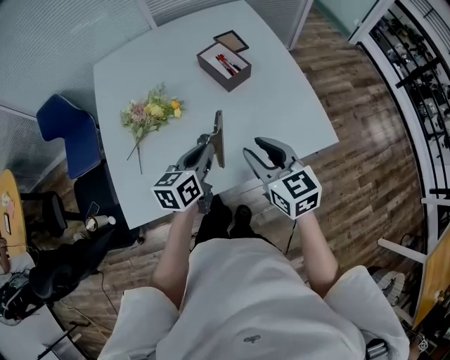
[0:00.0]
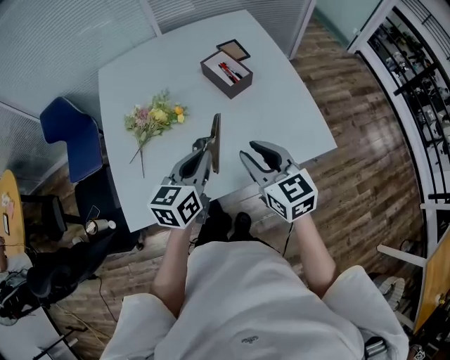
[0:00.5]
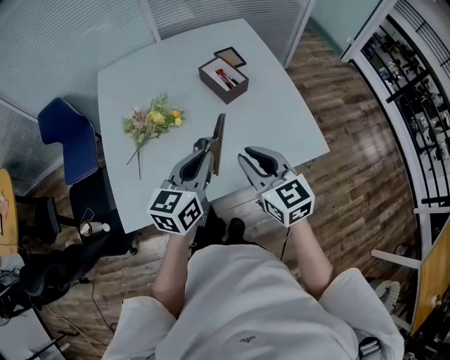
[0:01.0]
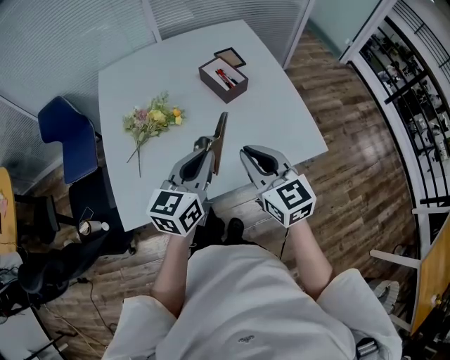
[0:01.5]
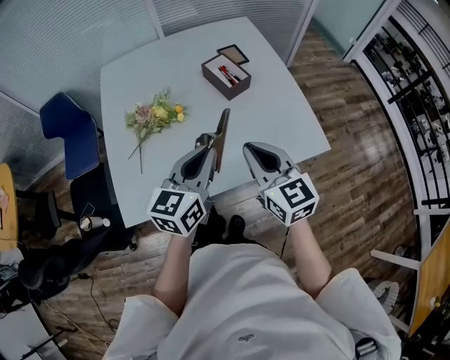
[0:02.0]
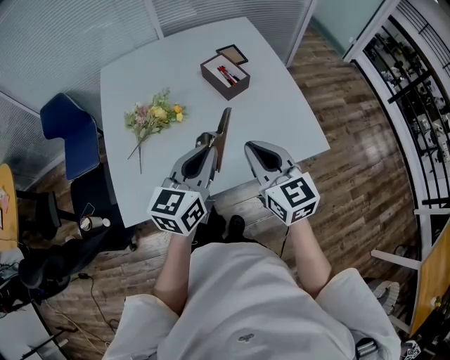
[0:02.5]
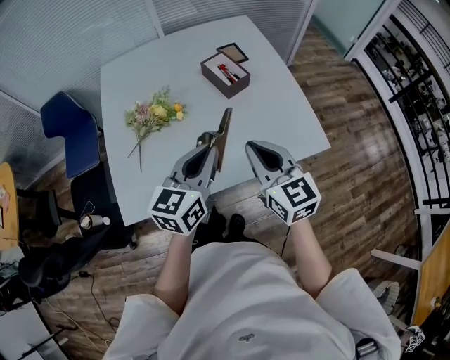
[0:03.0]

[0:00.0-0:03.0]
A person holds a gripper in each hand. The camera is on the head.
0.0 to 1.5 s: The right gripper shifts about 5 cm upward, and closes its fingers, while the left gripper moves upward and backward, approximately 10 cm.
1.5 to 3.0 s: The grippers make only small movements.

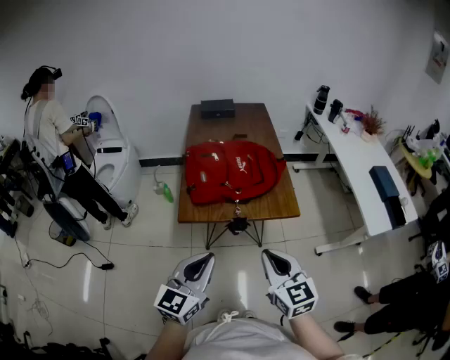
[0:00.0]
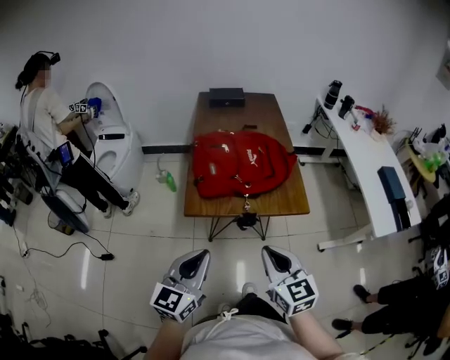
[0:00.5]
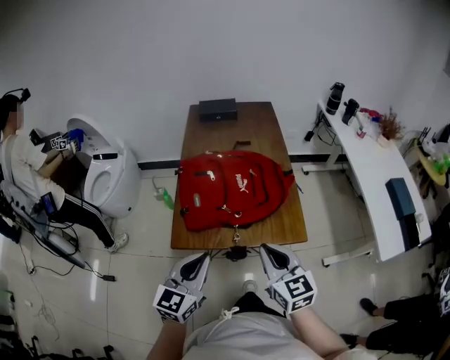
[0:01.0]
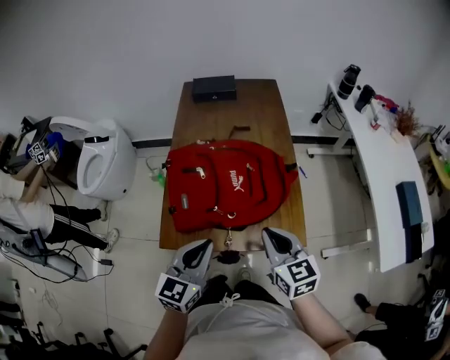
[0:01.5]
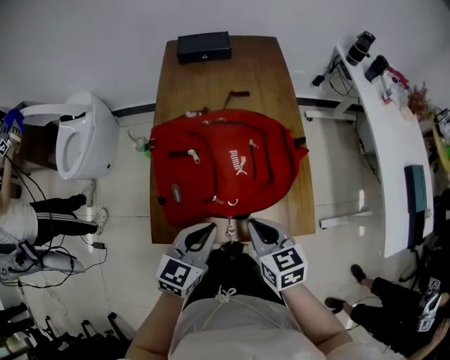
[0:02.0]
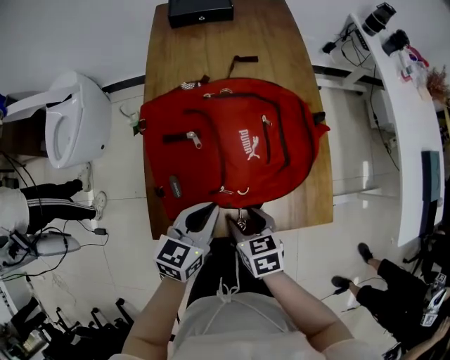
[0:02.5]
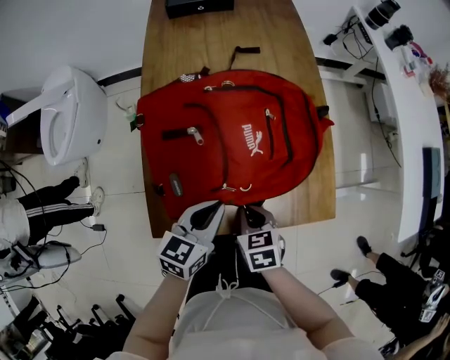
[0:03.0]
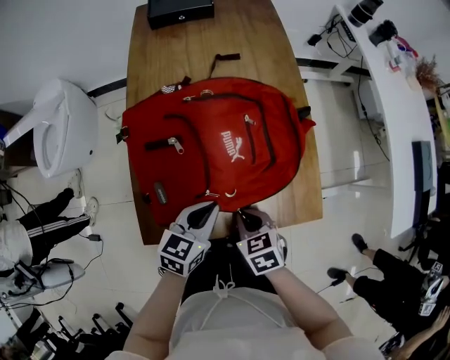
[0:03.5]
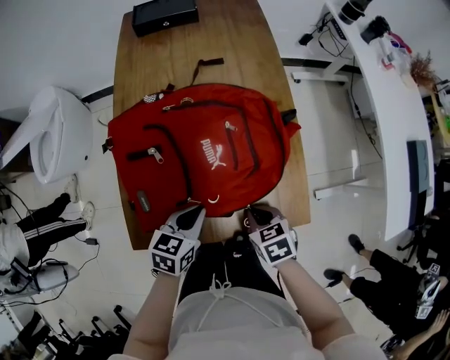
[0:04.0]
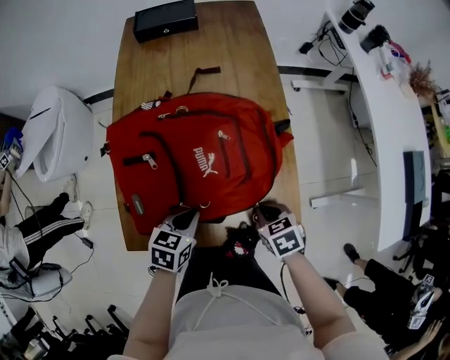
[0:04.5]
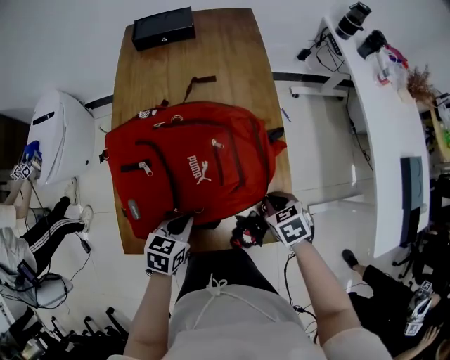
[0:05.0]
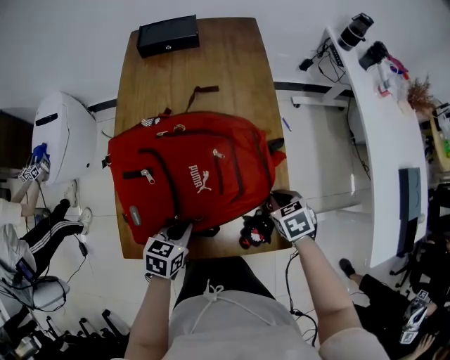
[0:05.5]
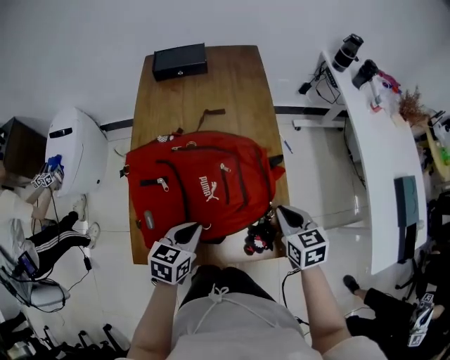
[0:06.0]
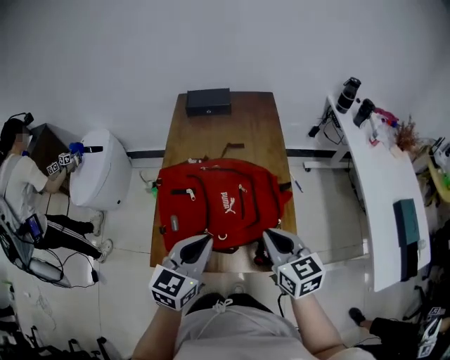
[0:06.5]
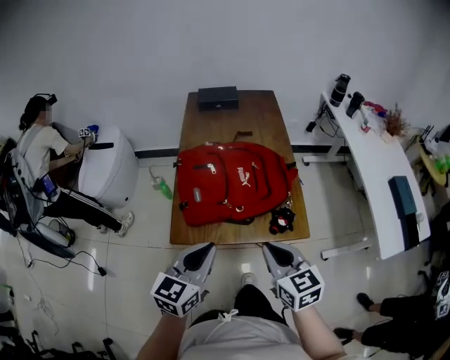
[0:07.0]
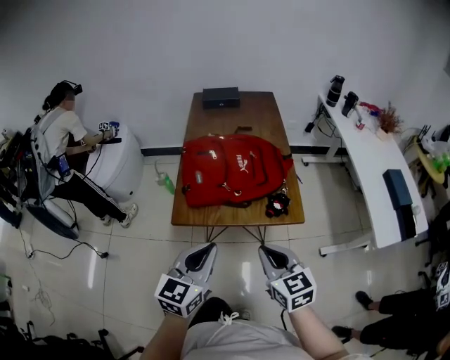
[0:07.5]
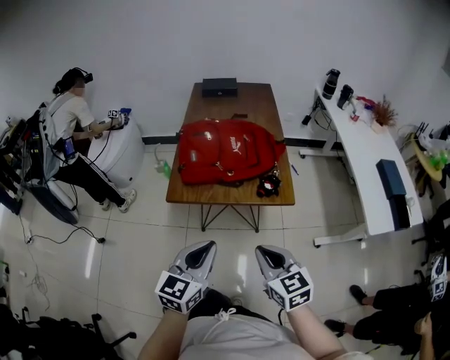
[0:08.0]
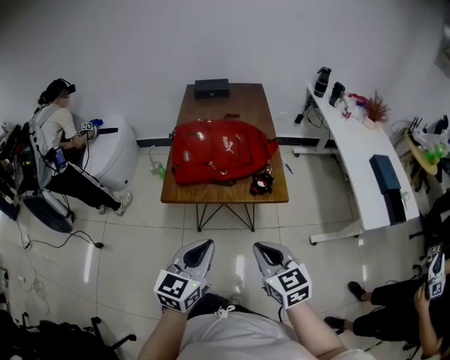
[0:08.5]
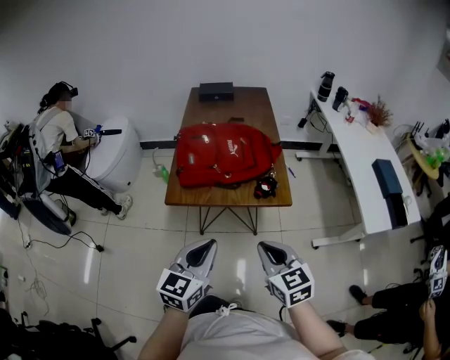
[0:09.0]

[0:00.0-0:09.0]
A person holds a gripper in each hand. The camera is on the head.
0.0 to 2.0 s: Both grippers travel together forward and downward, approximately 35 cm. The left gripper swivels roughly 20 degrees. The right gripper swivels roughly 20 degrees.
2.0 to 4.5 s: The right gripper moves downward and to the right, some 20 cm, swivels approximately 30 degrees, and opens and closes again, while the left gripper is displaced downward and forward by about 15 cm, and turns by about 30 degrees.
4.5 to 7.0 s: The two grippers go about 30 cm upward and backward. The right gripper angles its fingers upward, by about 40 degrees, while the left gripper points its fingers about 30 degrees further upward.
7.0 to 9.0 s: Both grippers move backward, about 20 cm.

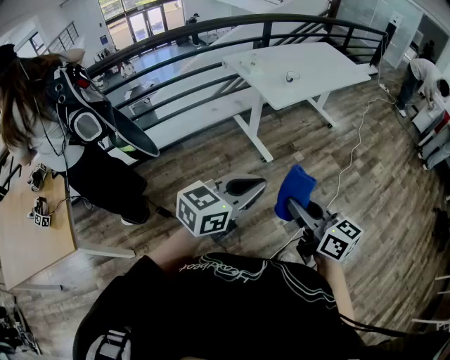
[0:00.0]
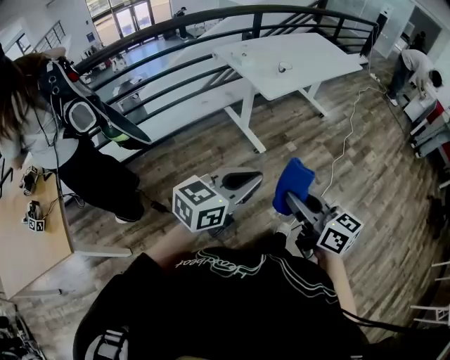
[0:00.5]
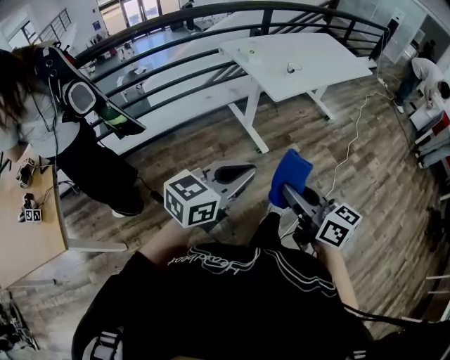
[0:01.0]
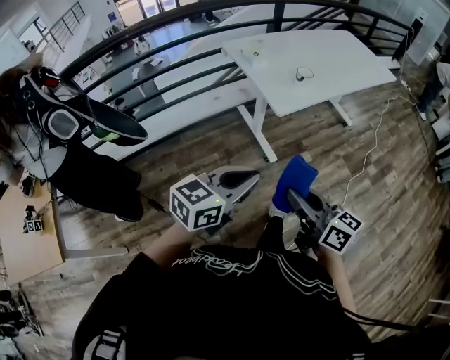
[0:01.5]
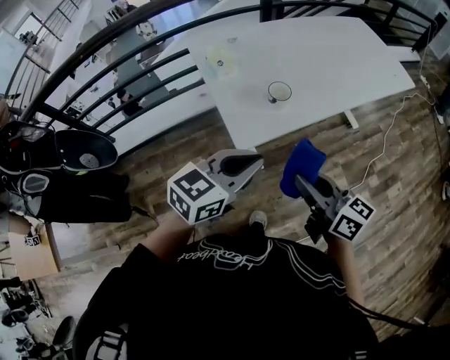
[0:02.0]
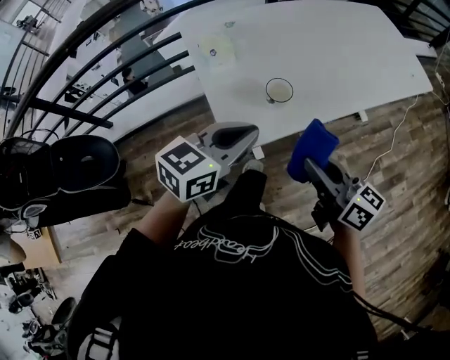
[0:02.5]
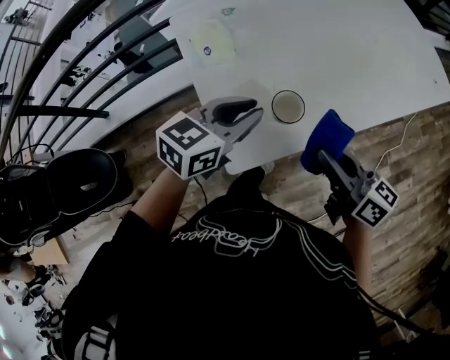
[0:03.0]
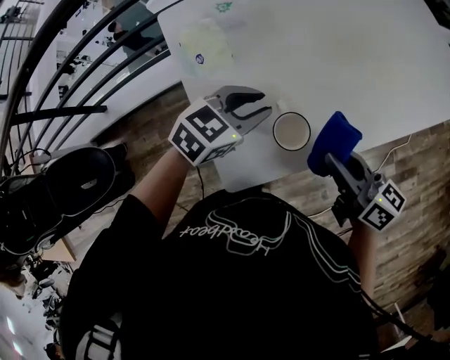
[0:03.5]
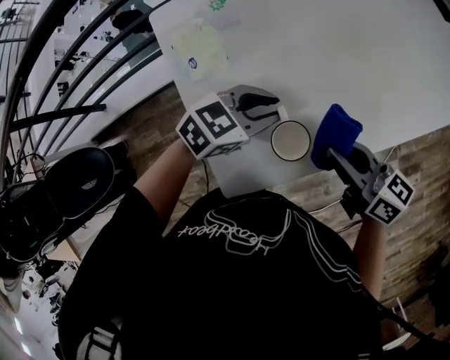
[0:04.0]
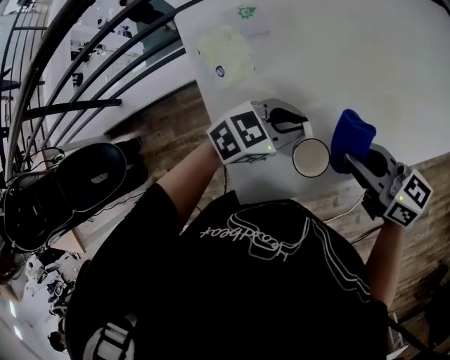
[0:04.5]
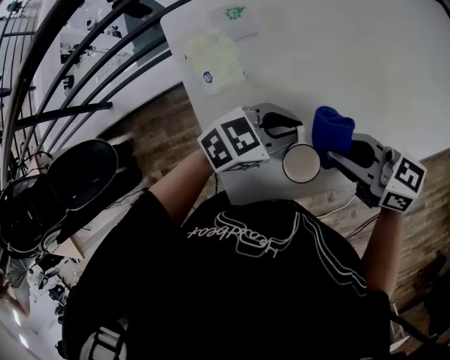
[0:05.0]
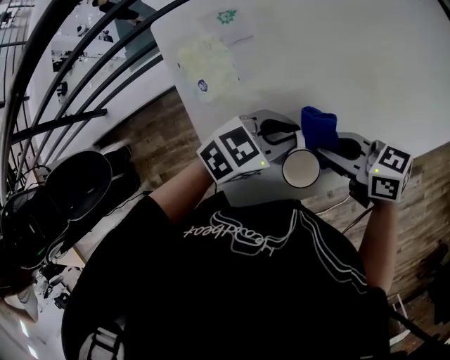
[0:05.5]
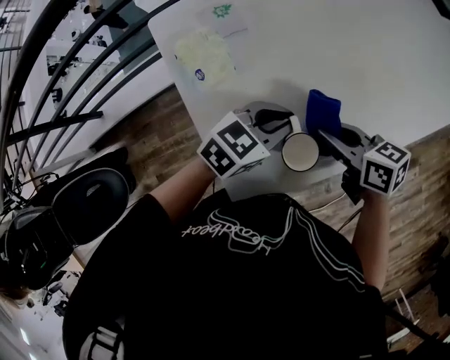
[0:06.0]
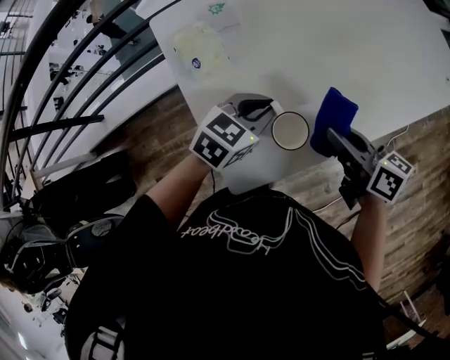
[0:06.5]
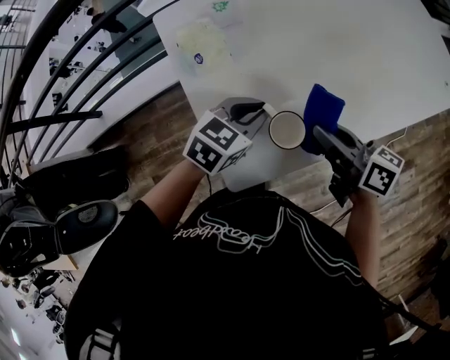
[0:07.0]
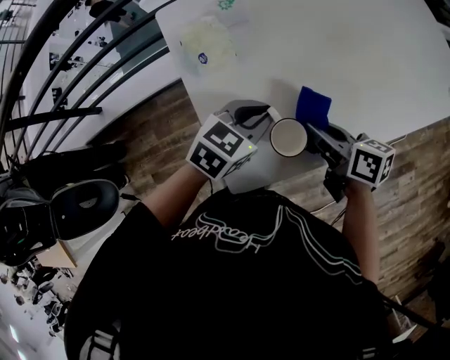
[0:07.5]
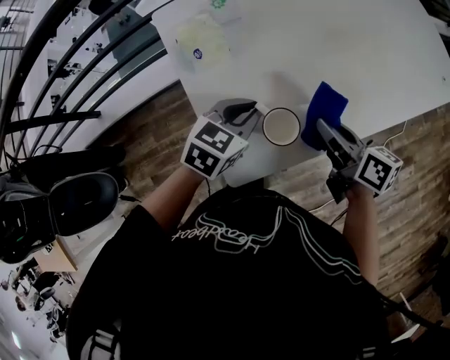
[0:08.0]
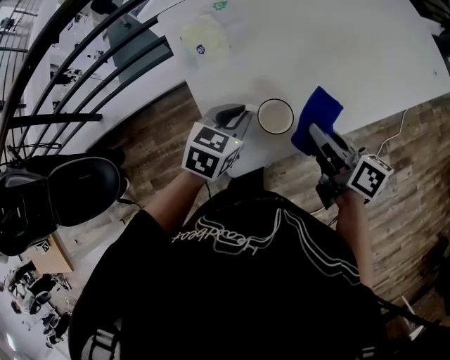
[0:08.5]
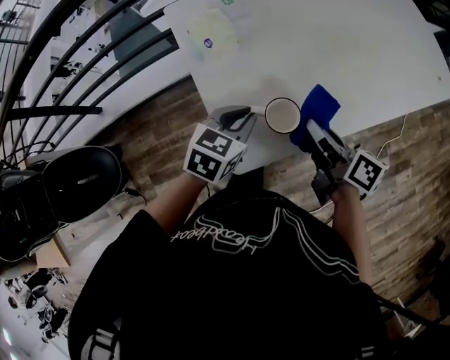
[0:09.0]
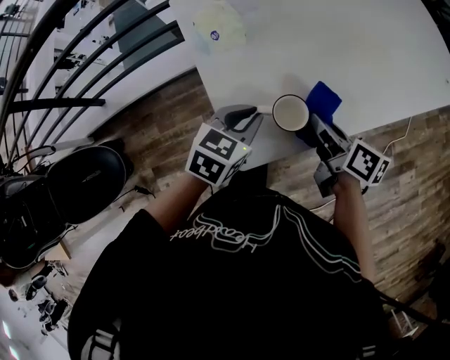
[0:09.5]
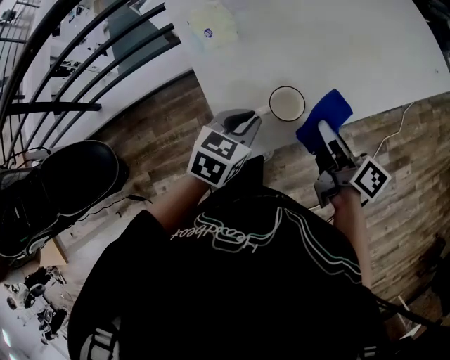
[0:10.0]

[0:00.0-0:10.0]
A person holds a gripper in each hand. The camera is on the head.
0.0 to 2.0 s: Both grippers are carried forward and to the right, about 60 cm.
2.0 to 4.0 s: The right gripper ends up approximately 35 cm from where it was, while the left gripper ends up approximately 40 cm from where it was, rotates some 20 degrees, and opens its fingers.
4.0 to 6.0 s: The right gripper moves about 10 cm.
6.0 to 8.0 s: The right gripper ends up roughly 5 cm from where it was, and rotates roughly 20 degrees; the left gripper shifts by approximately 5 cm.
8.0 to 10.0 s: Both grippers move backward, roughly 10 cm.

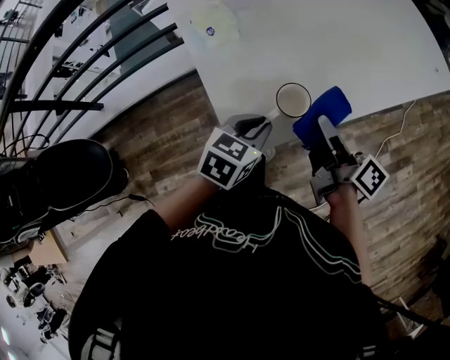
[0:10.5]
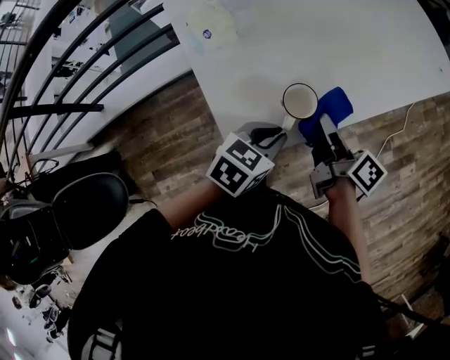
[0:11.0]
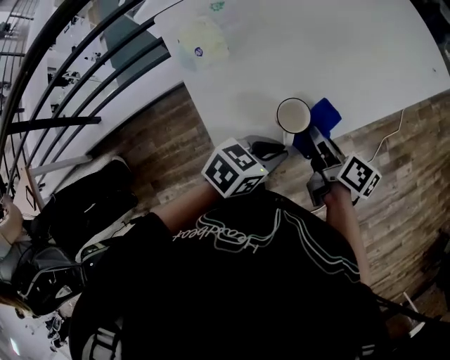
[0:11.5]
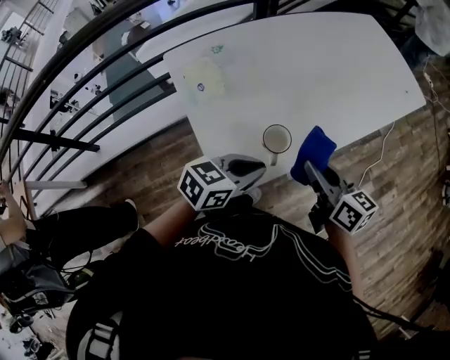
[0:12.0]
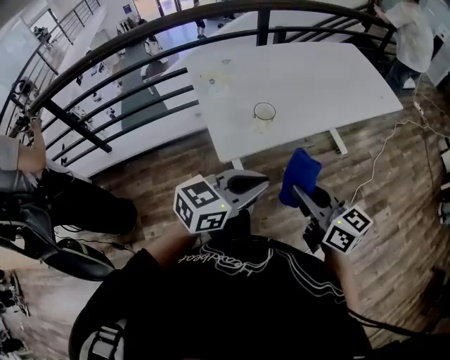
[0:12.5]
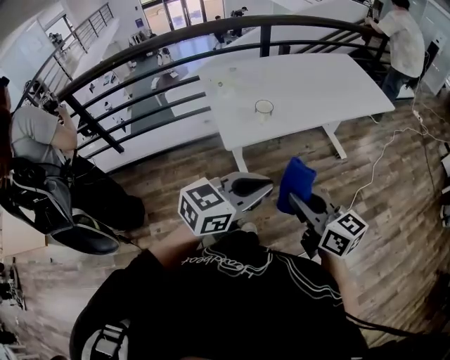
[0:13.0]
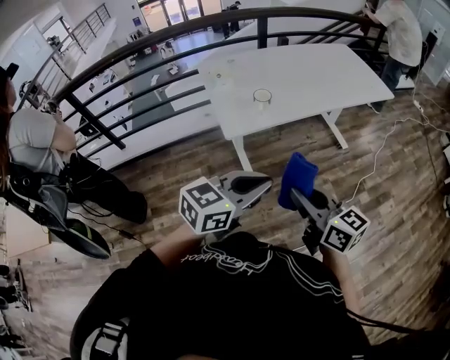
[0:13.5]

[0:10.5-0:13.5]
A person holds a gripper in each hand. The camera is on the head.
10.5 to 12.0 s: Both grippers travel together upward, approximately 5 cm. The left gripper rotates some 20 degrees. The right gripper rotates roughly 40 degrees.
12.0 to 13.5 s: The right gripper travels backward by roughly 40 cm; the left gripper moves backward and upward, some 40 cm, and rotates approximately 20 degrees.

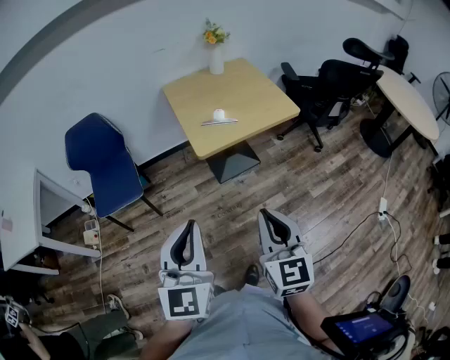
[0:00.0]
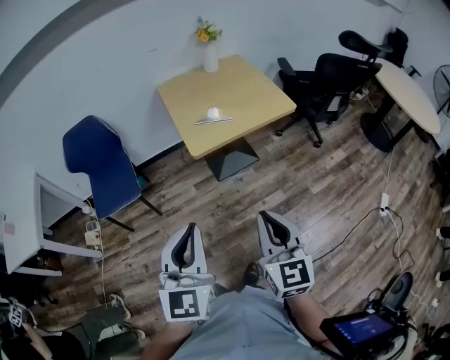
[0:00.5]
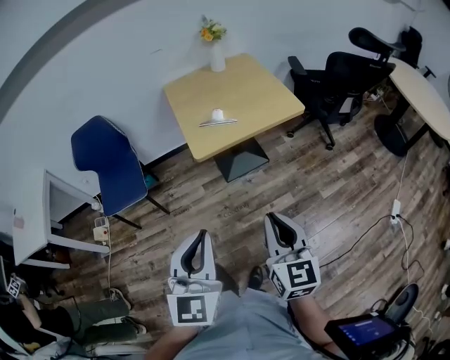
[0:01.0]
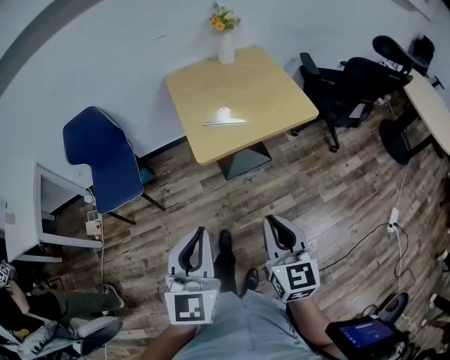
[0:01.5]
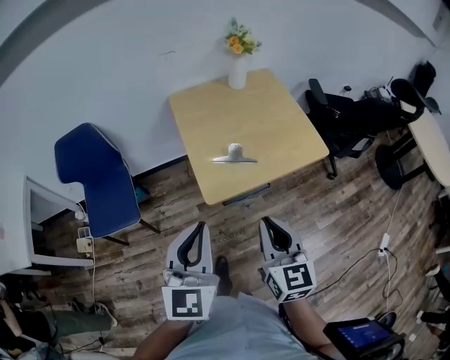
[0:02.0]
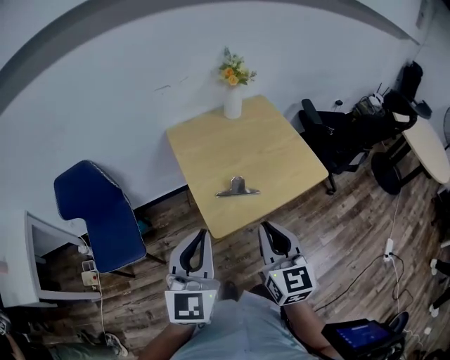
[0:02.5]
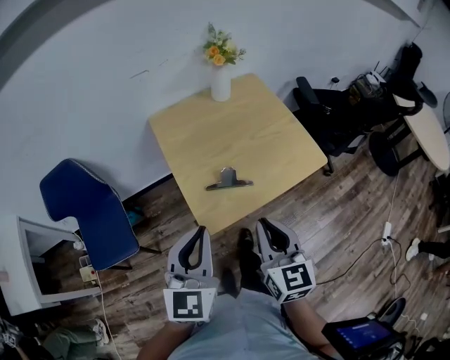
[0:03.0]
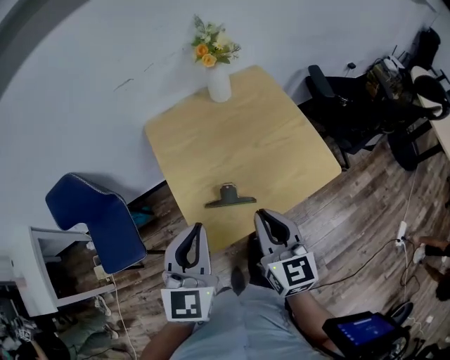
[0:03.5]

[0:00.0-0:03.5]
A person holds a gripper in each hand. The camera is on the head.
0.0 to 2.0 s: The grippers both shift forward by roughly 30 cm.
2.0 to 3.5 s: Both grippers travel together forward, about 25 cm.
